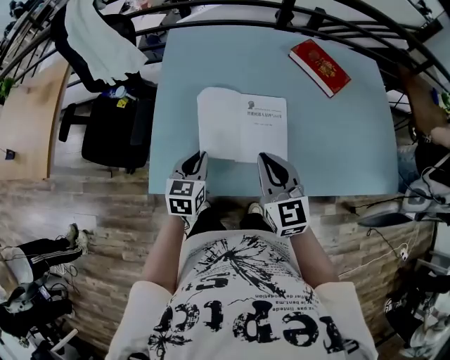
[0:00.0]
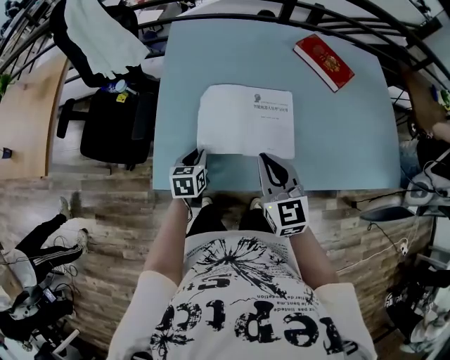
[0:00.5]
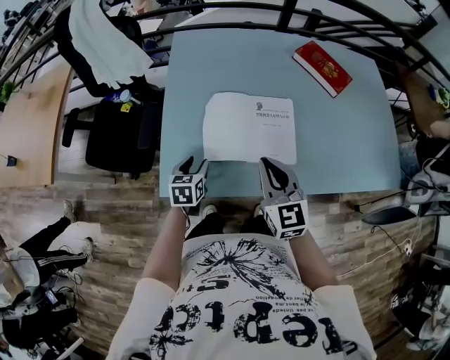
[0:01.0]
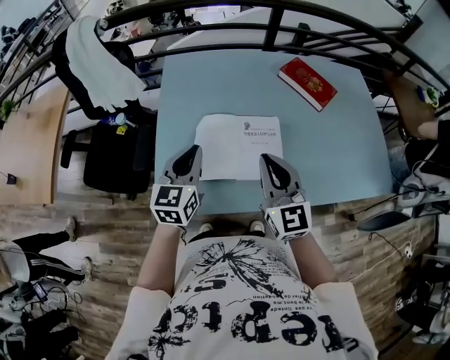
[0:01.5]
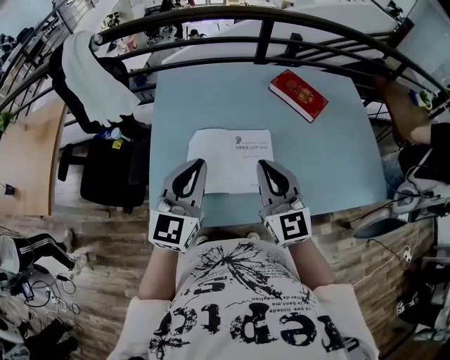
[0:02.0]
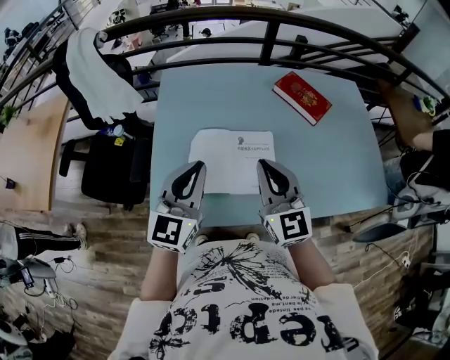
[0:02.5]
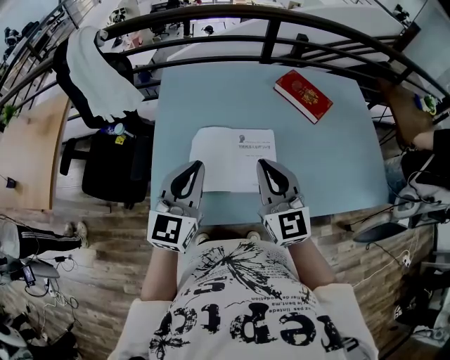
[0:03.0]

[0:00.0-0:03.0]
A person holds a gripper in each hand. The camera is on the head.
0:00.0 to 0:01.5: The right gripper is displaced upward by some 5 cm. Meanwhile the left gripper heads upward, covering about 15 cm, and opens and closes again.
0:01.5 to 0:03.0: The left gripper moves upward, approximately 5 cm.

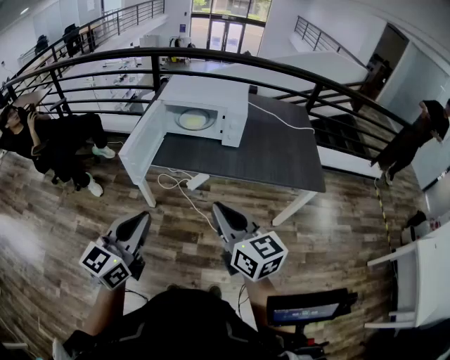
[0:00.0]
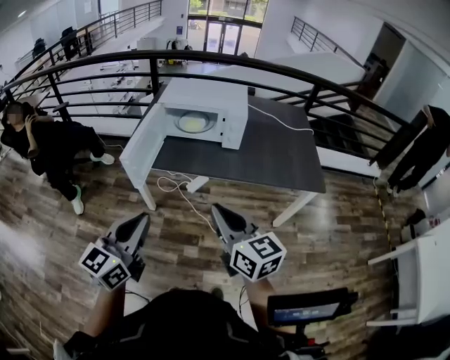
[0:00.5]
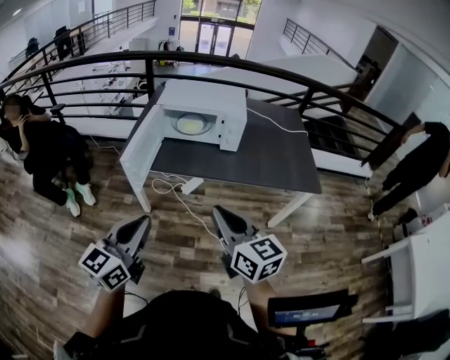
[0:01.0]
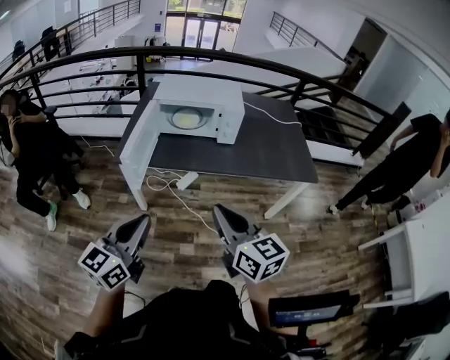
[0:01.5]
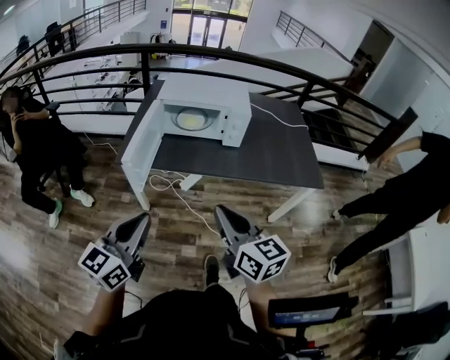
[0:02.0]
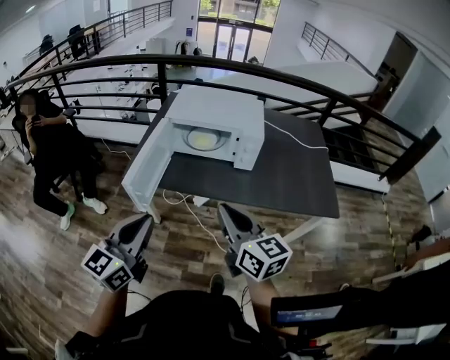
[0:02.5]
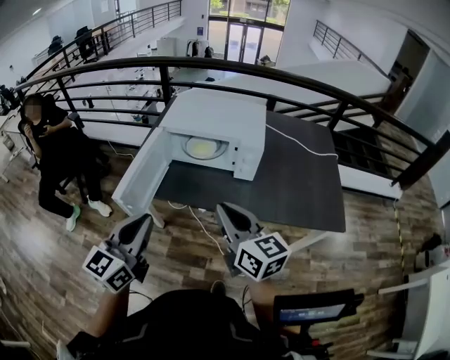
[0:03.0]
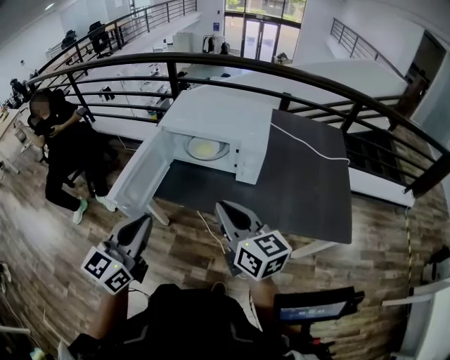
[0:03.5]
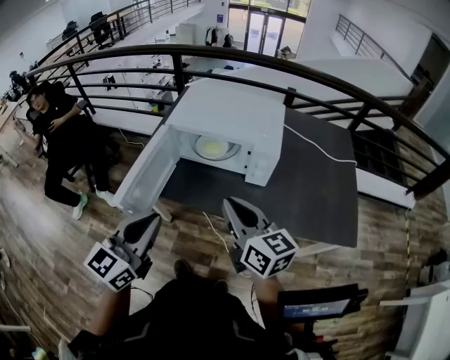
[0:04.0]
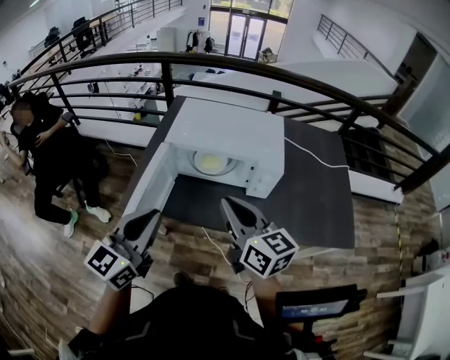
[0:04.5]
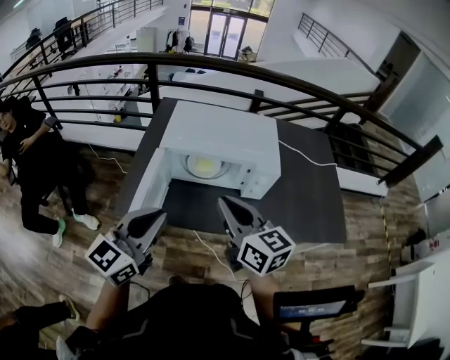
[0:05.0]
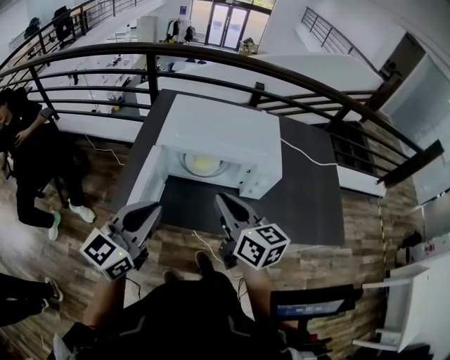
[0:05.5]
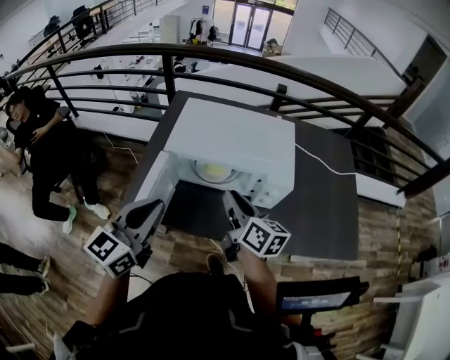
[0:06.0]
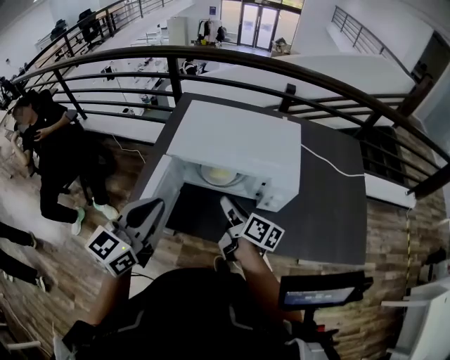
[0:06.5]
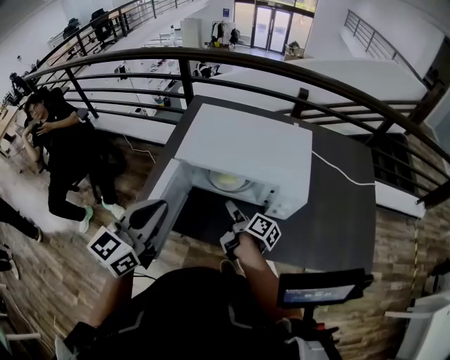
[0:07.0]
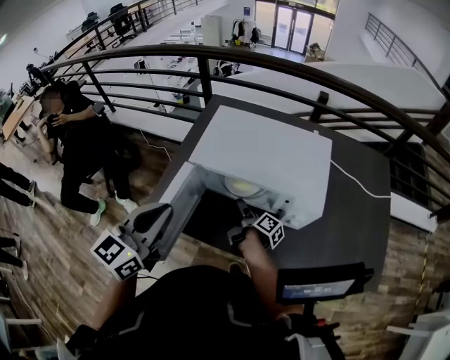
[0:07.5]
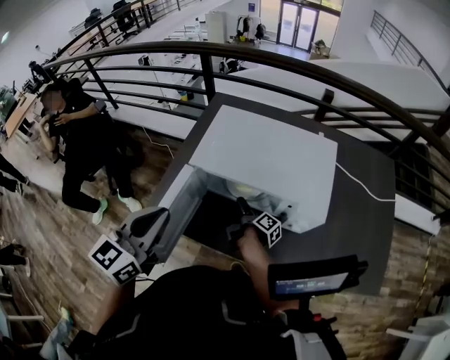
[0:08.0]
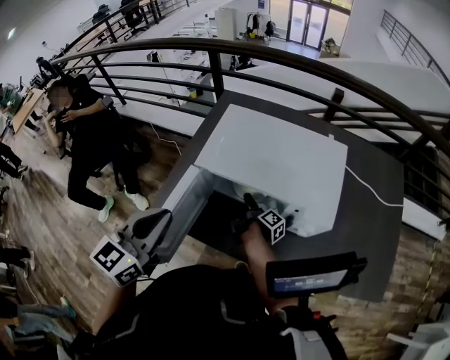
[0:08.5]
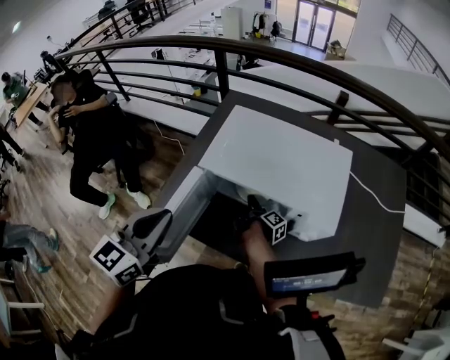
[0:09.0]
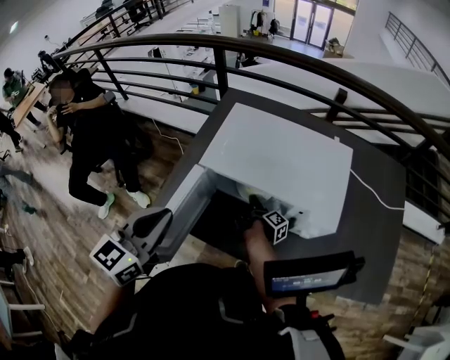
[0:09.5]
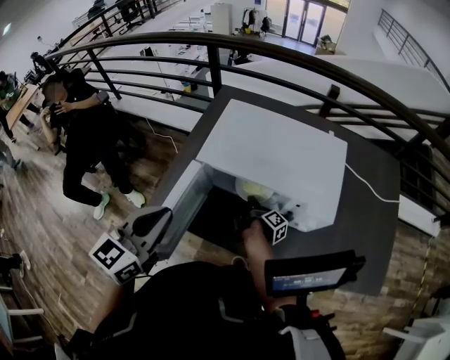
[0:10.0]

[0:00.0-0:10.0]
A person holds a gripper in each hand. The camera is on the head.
0:00.0 to 0:02.0: Both grippers move to the left, roughly 5 cm.
0:02.0 to 0:04.0: The right gripper moves forward, some 30 cm, while the left gripper travels forward and to the right by about 25 cm.
0:04.0 to 0:06.0: The left gripper travels forward and to the left by roughly 20 cm, while the right gripper travels forward by roughly 20 cm, and turns by about 20 degrees.
0:06.0 to 0:08.0: The right gripper is displaced downward and forward by approximately 25 cm, twists roughly 50 degrees clockwise, seen from behind, and opens its fingers.
0:08.0 to 0:10.0: The right gripper closes its fingers.

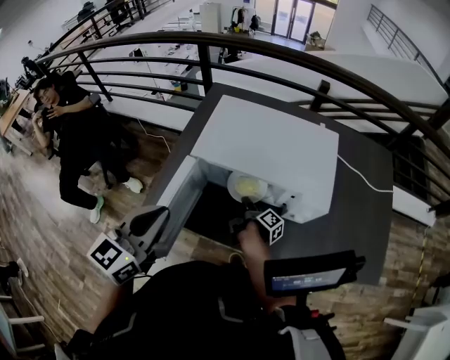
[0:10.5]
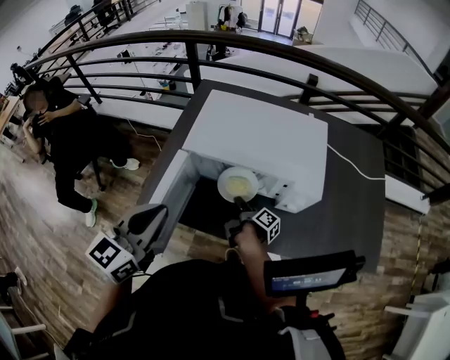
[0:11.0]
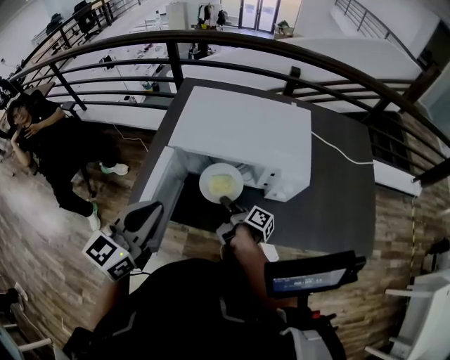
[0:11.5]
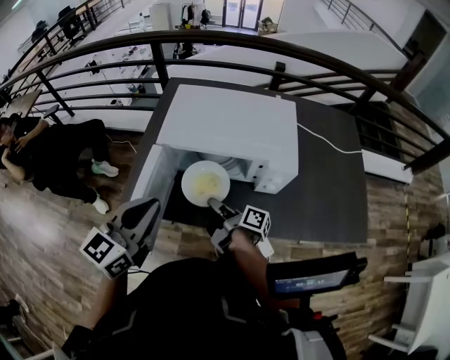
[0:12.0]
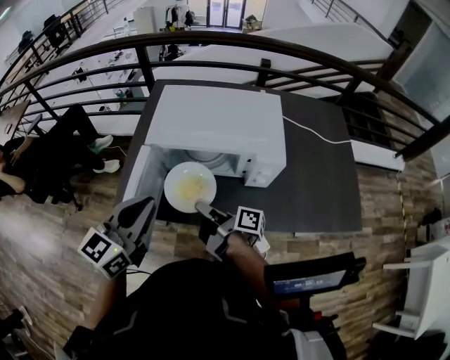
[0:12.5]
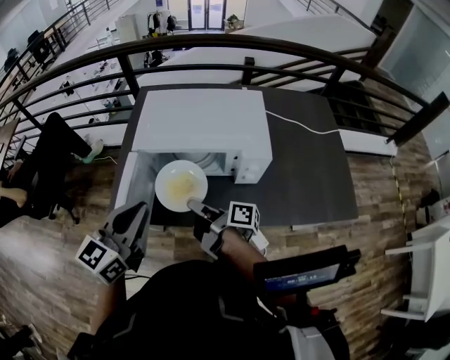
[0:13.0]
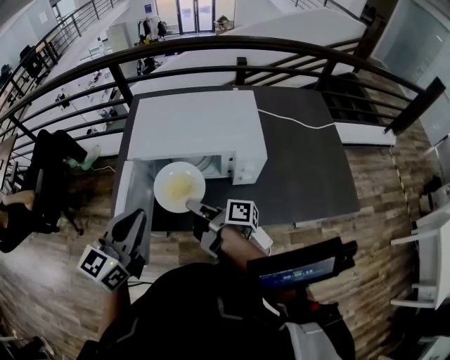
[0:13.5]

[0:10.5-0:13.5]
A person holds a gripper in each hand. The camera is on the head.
0:10.5 to 0:12.0: The right gripper travels backward, upward and to the left by some 15 cm, and rotates approximately 20 degrees.
0:12.0 to 0:13.5: The right gripper travels upward by some 5 cm.

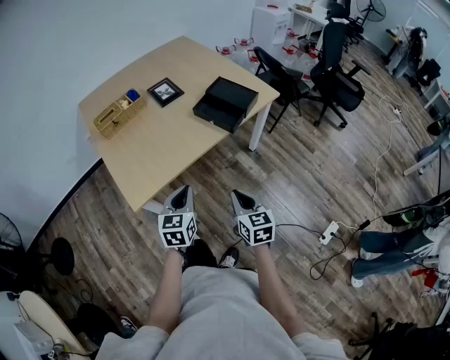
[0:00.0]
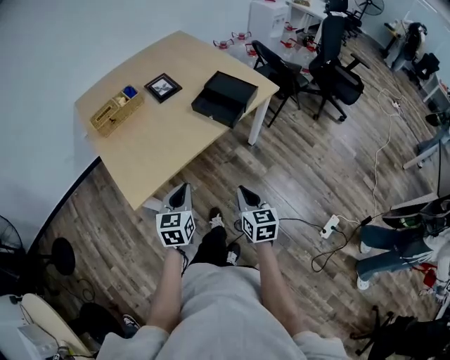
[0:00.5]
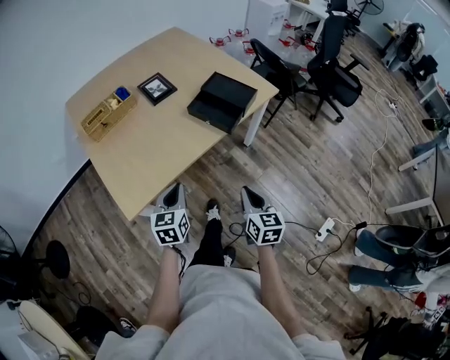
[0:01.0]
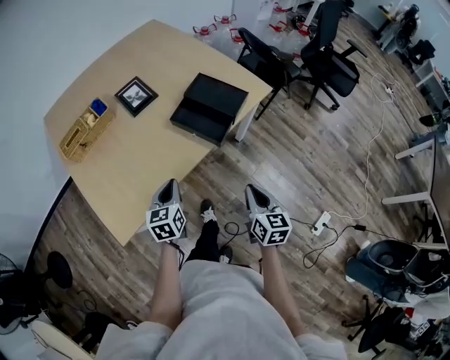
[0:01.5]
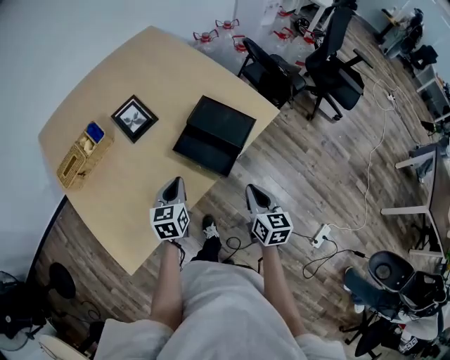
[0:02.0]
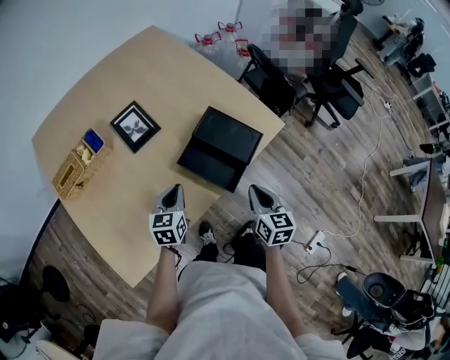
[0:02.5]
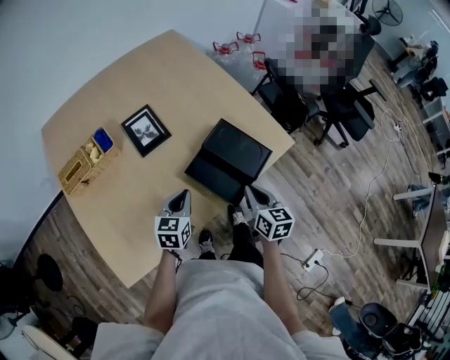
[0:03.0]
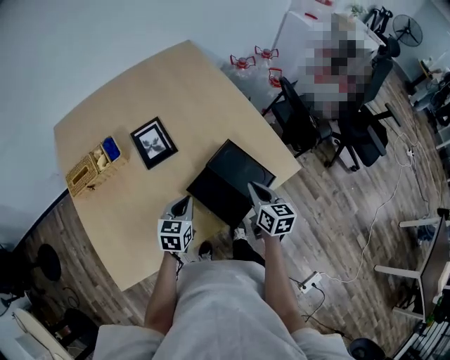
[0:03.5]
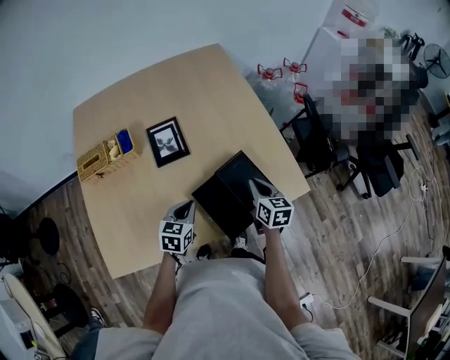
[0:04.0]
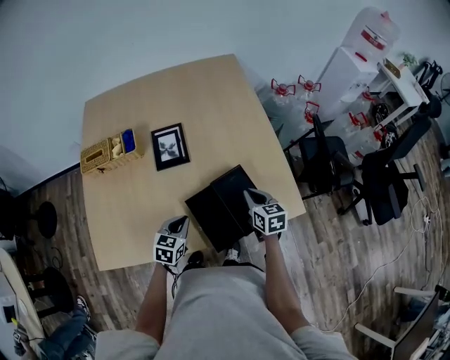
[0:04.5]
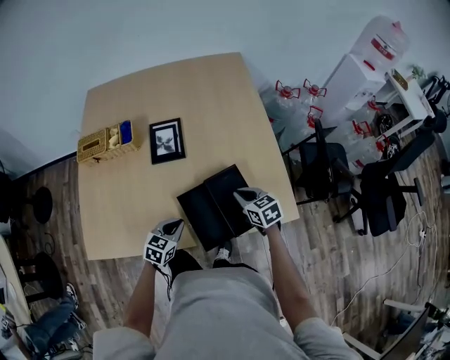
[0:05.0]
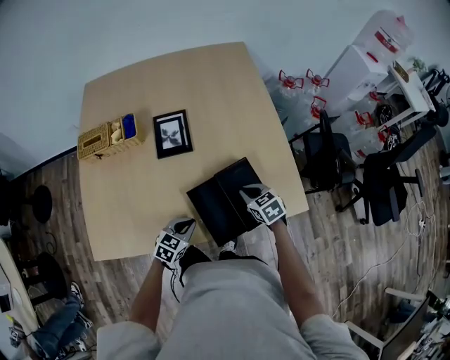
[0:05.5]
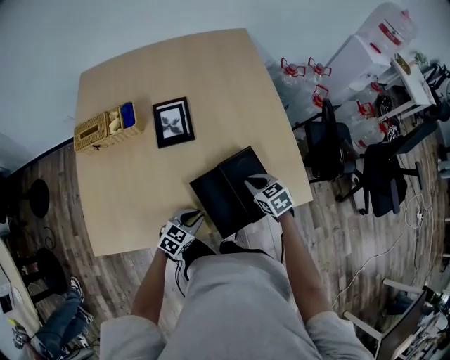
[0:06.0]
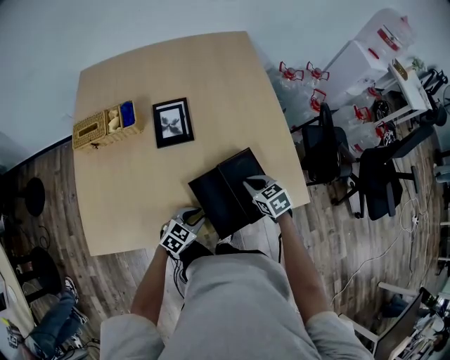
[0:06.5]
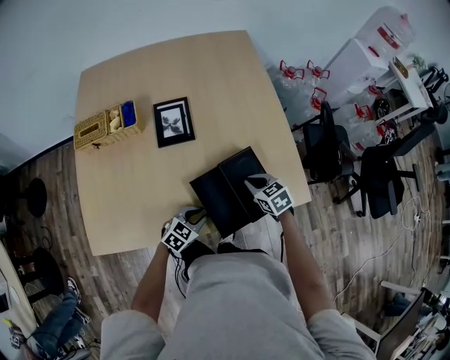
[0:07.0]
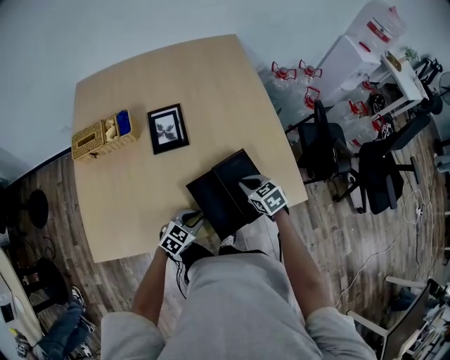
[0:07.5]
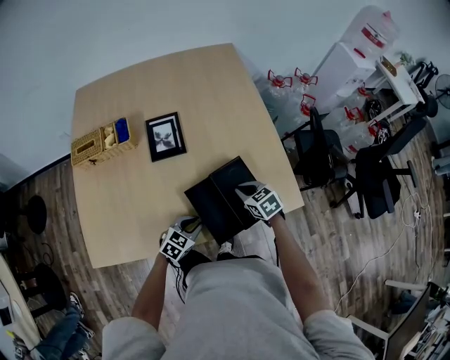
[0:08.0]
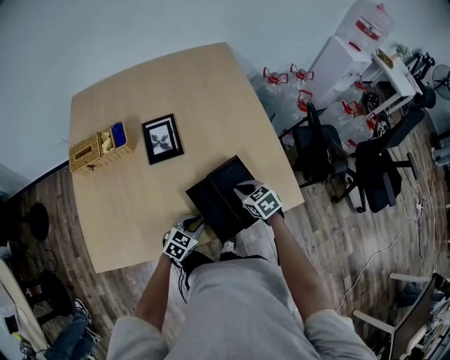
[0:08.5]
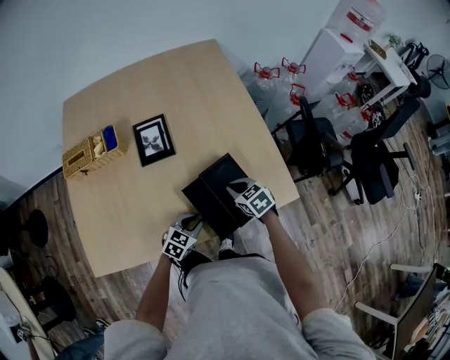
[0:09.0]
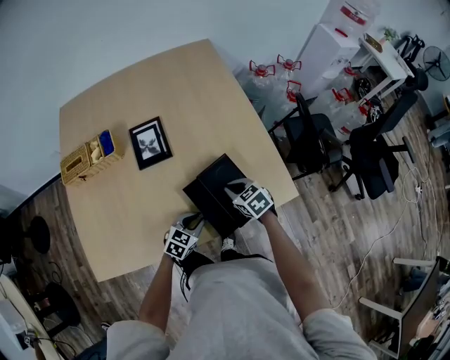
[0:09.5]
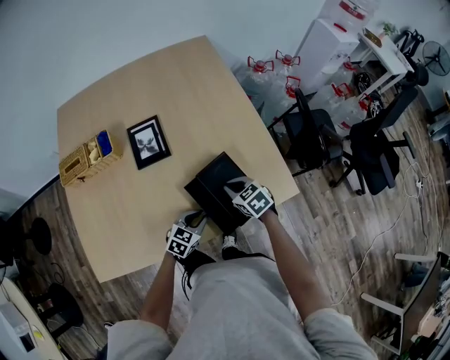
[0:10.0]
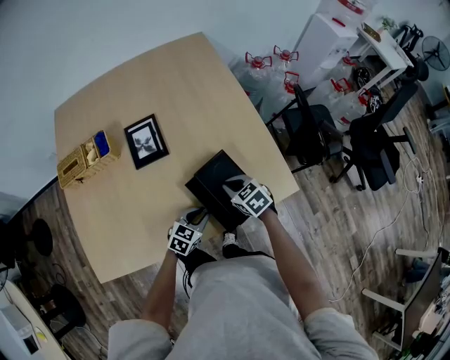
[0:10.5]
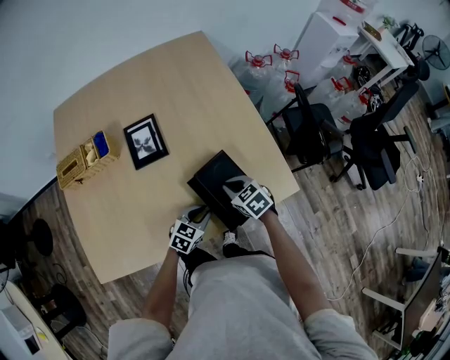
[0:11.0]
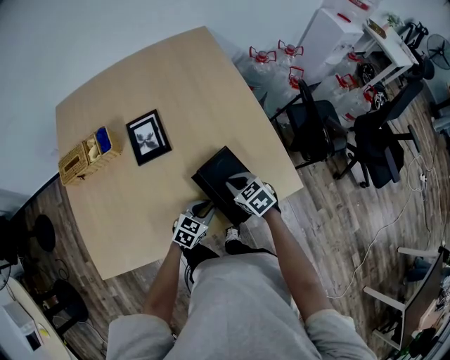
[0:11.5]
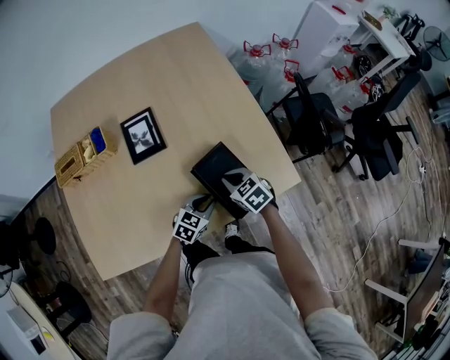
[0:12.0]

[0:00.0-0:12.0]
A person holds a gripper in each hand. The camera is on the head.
0:00.0 to 0:02.0: Both grippers move forward, about 30 cm.
0:02.0 to 0:04.0: The right gripper is displaced forward by approximately 30 cm, and rotates some 30 degrees. Meanwhile the left gripper travels forward by roughly 10 cm.
0:04.0 to 0:06.0: The right gripper heads downward, covering some 5 cm, and changes its angle by about 40 degrees; the left gripper goes approximately 10 cm downward and backward.
0:06.0 to 0:08.0: The grippers make only small movements.
0:08.0 to 0:10.0: The left gripper shifts by approximately 5 cm.
0:10.0 to 0:12.0: There are only small adjustments of the grippers.
